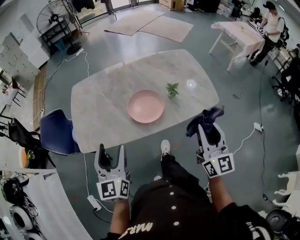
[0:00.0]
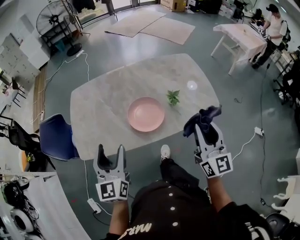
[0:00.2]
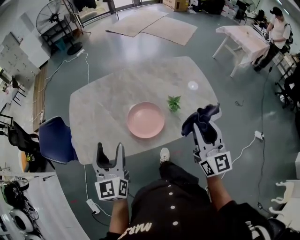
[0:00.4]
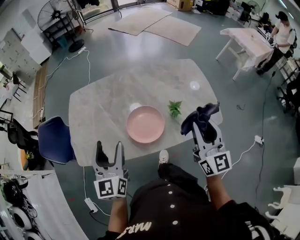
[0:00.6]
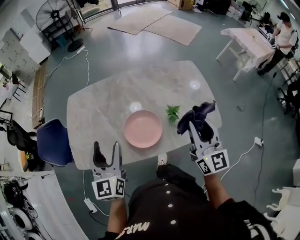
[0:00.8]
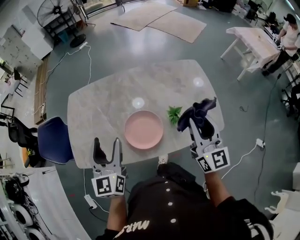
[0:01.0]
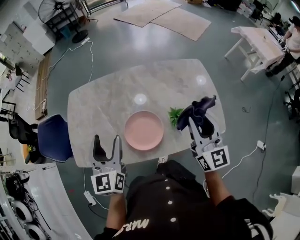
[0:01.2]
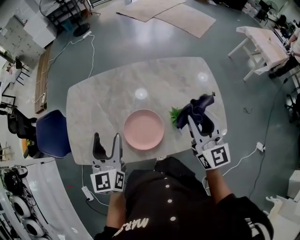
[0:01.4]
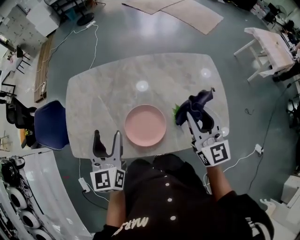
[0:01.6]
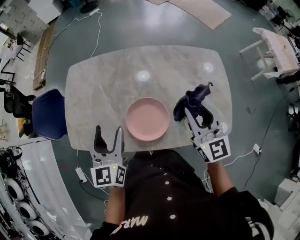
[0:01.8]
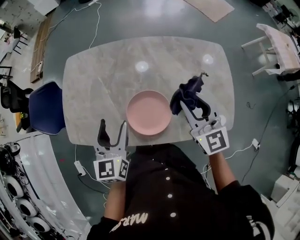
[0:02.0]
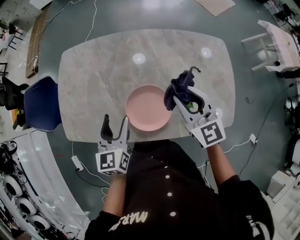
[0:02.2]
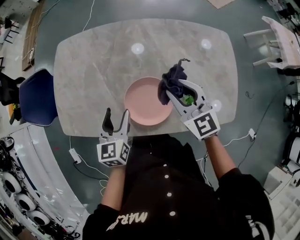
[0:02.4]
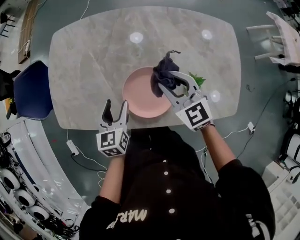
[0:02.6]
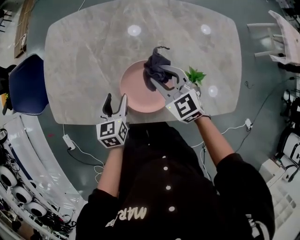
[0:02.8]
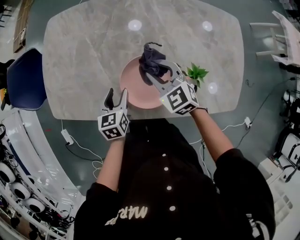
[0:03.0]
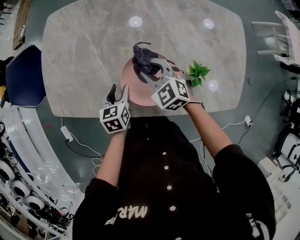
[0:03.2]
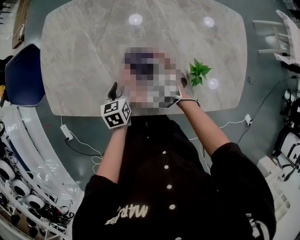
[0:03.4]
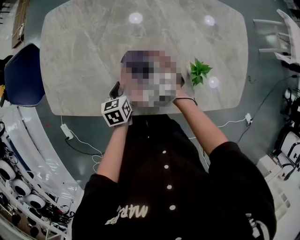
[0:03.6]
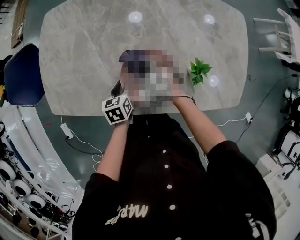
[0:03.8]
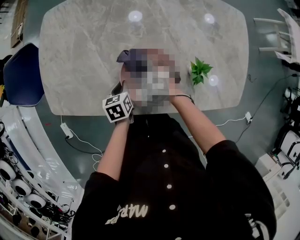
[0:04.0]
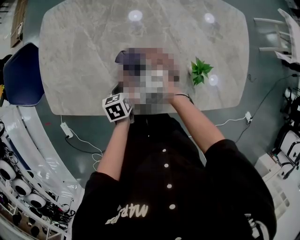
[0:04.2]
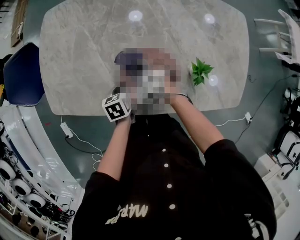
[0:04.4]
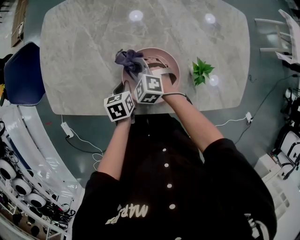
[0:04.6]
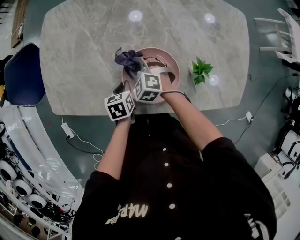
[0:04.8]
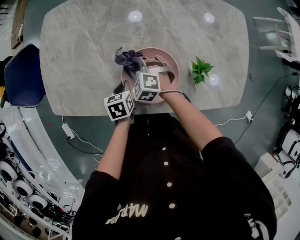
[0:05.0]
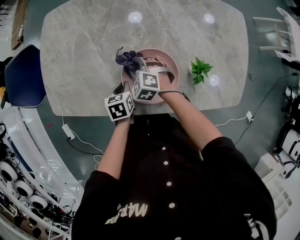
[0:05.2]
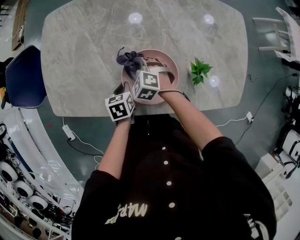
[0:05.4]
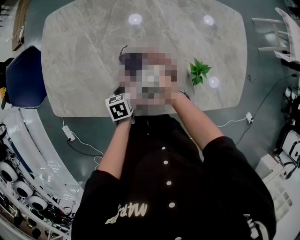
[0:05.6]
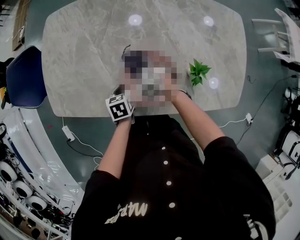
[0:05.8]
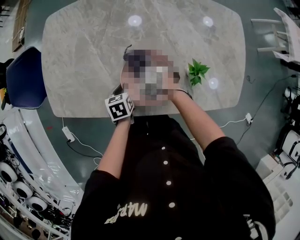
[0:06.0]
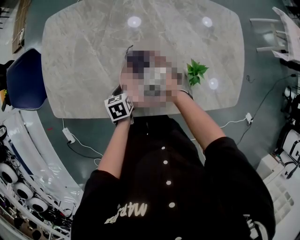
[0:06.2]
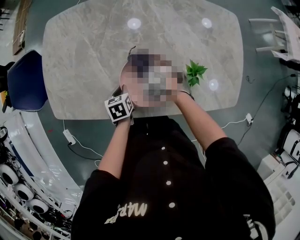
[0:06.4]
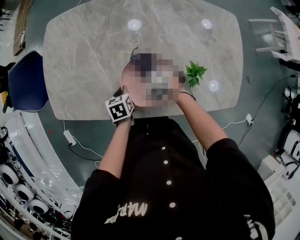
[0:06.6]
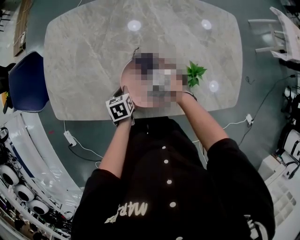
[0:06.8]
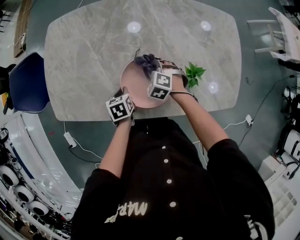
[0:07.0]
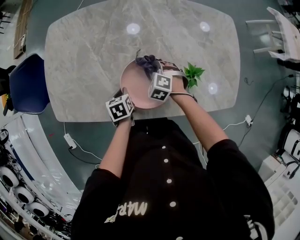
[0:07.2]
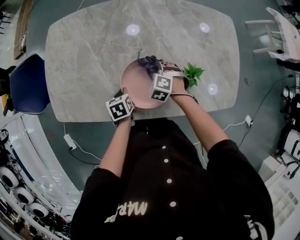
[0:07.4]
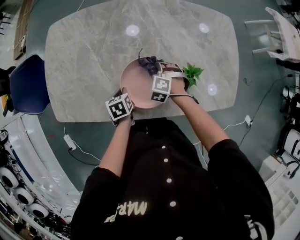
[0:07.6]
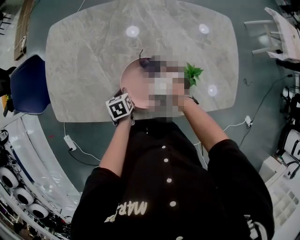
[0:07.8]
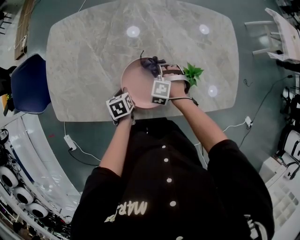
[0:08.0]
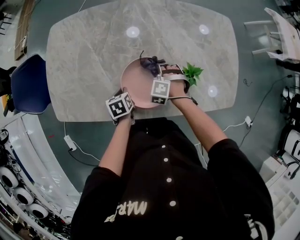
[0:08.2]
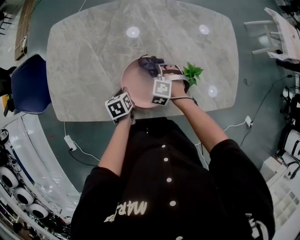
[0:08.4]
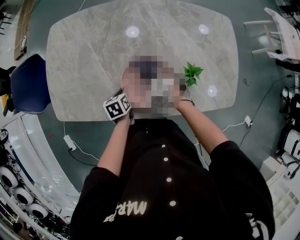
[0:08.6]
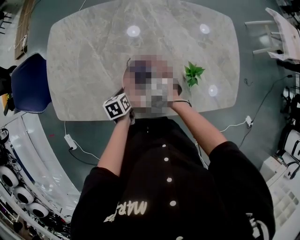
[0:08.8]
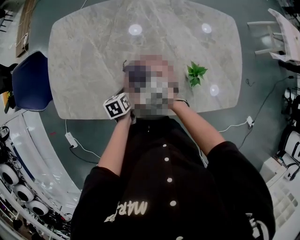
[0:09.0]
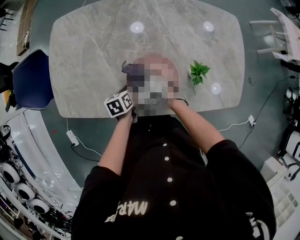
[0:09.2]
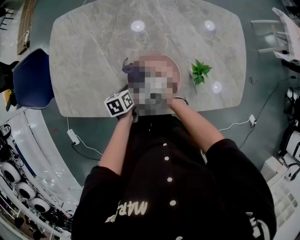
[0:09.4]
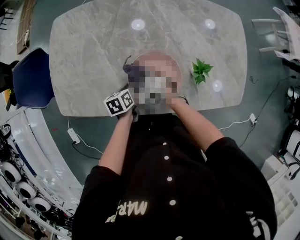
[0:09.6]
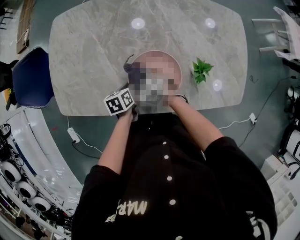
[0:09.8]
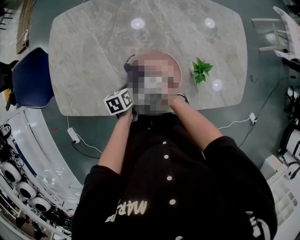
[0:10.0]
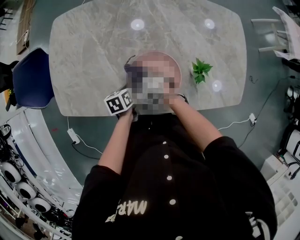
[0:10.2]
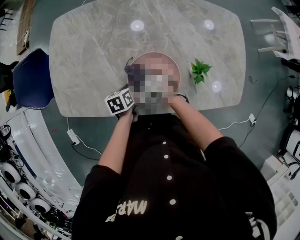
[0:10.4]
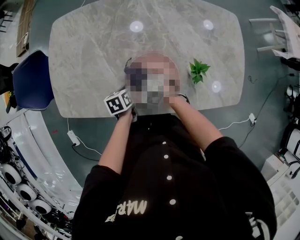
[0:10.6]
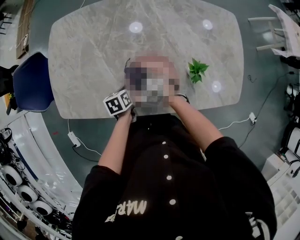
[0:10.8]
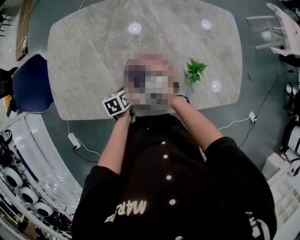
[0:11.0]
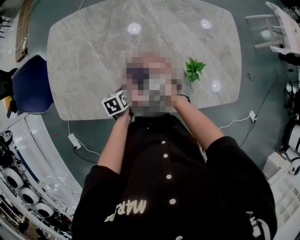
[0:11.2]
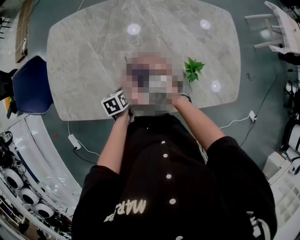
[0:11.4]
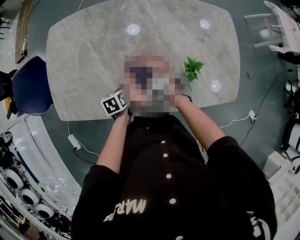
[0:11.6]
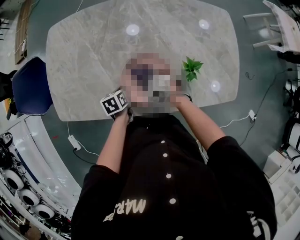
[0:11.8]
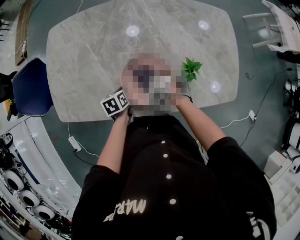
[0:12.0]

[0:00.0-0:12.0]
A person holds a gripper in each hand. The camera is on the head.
0:00.0 to 0:01.6: Both grippers move forward, some 30 cm. The right gripper swivels about 20 degrees.
0:01.6 to 0:03.0: The left gripper moves downward, approximately 30 cm, and points its fingers approximately 30 degrees further downward. The right gripper travels downward, to the left and forward by approximately 35 cm, and tilts its fingers about 40 degrees downward.
0:03.0 to 0:04.4: The left gripper travels downward by about 10 cm, and closes. The right gripper shifts some 15 cm downward and to the left, and turns by approximately 20 degrees.
0:04.4 to 0:06.0: The grippers stay close to where they were, moving slightly.
0:06.0 to 0:07.6: The right gripper moves to the right, about 10 cm, and turns by about 20 degrees.
0:07.6 to 0:09.0: The right gripper goes about 10 cm to the left, and swivels roughly 30 degrees.
0:09.0 to 0:10.4: The grippers stay close to where they were, moving slightly.
0:10.4 to 0:12.0: The right gripper travels to the right by approximately 5 cm.

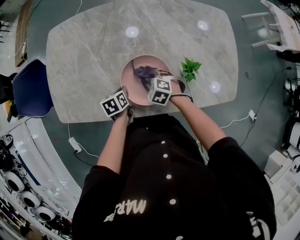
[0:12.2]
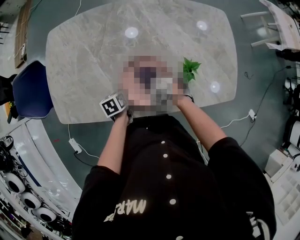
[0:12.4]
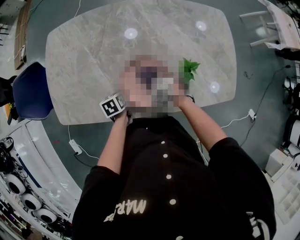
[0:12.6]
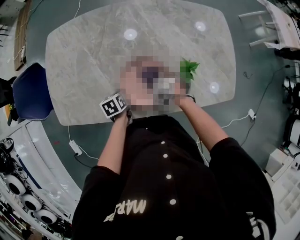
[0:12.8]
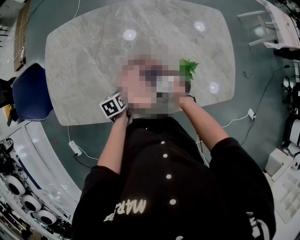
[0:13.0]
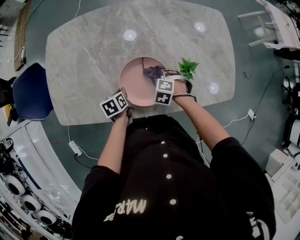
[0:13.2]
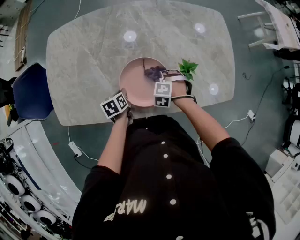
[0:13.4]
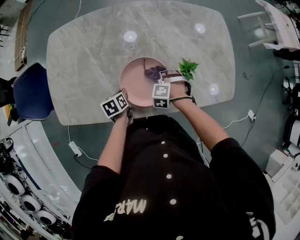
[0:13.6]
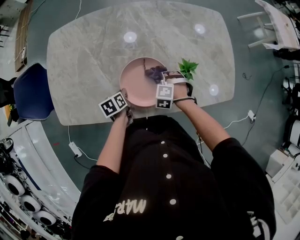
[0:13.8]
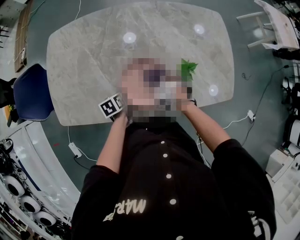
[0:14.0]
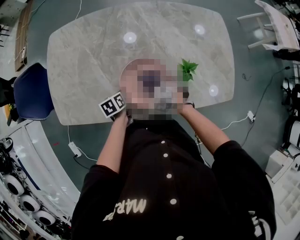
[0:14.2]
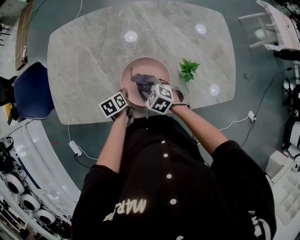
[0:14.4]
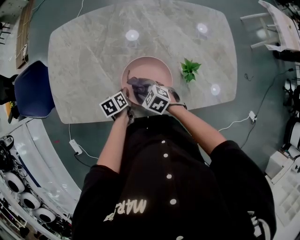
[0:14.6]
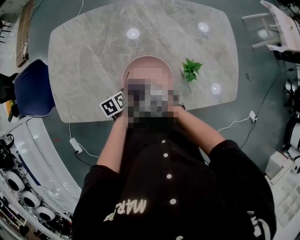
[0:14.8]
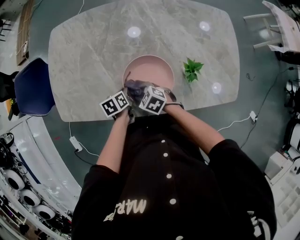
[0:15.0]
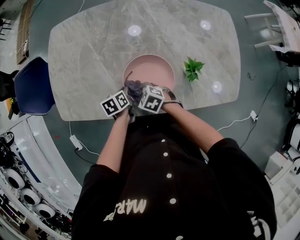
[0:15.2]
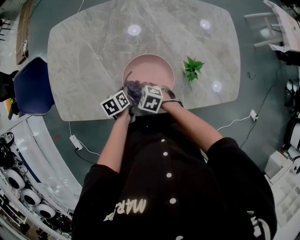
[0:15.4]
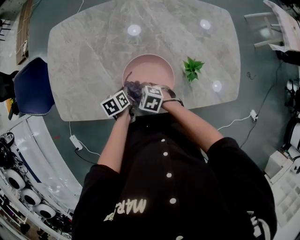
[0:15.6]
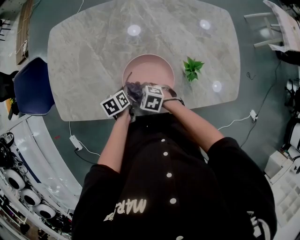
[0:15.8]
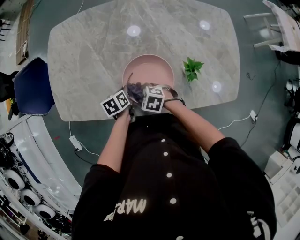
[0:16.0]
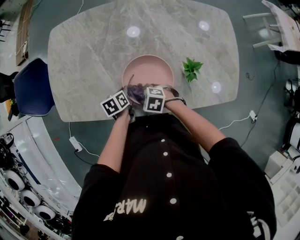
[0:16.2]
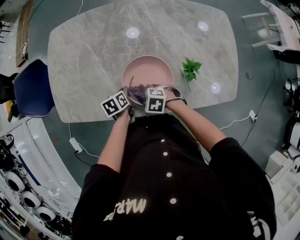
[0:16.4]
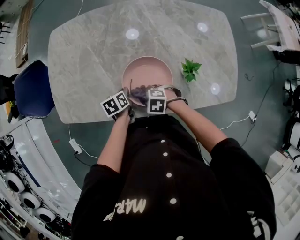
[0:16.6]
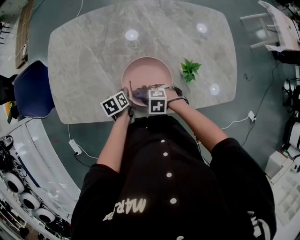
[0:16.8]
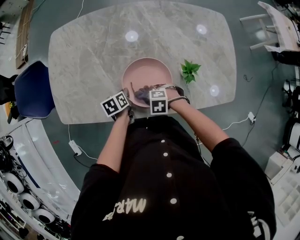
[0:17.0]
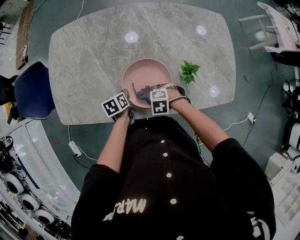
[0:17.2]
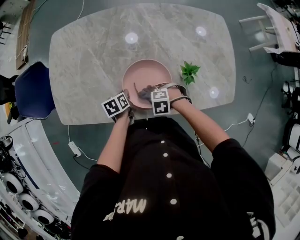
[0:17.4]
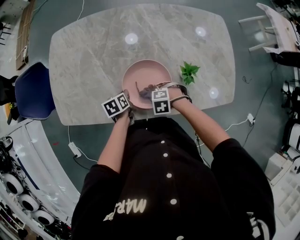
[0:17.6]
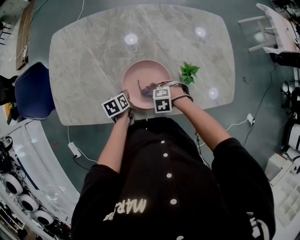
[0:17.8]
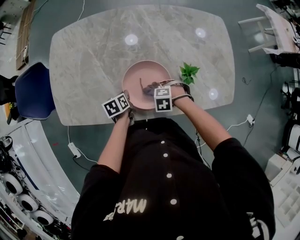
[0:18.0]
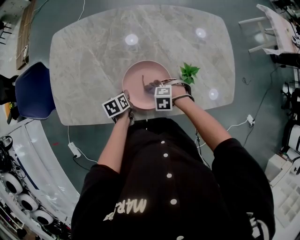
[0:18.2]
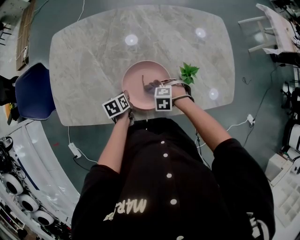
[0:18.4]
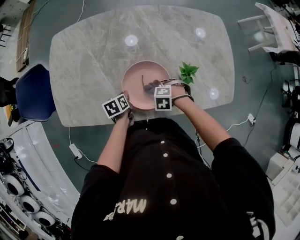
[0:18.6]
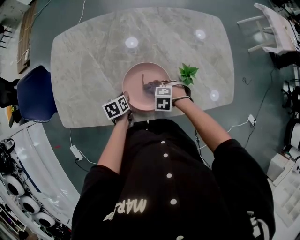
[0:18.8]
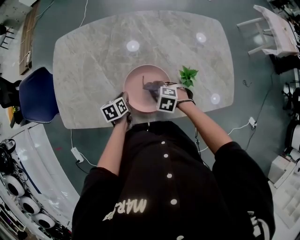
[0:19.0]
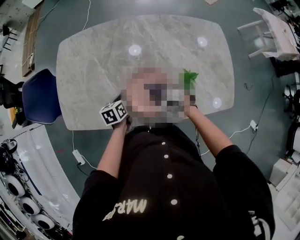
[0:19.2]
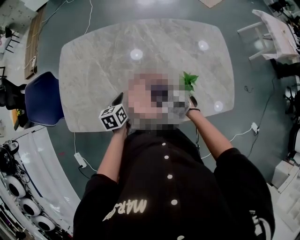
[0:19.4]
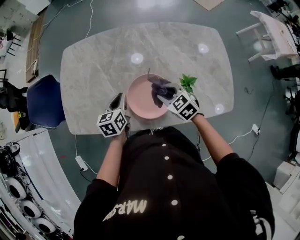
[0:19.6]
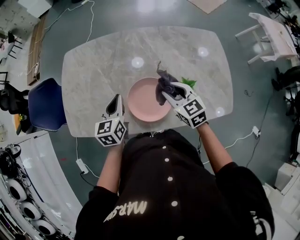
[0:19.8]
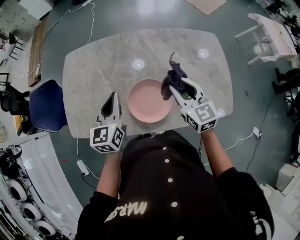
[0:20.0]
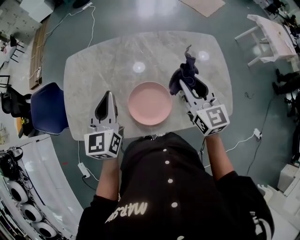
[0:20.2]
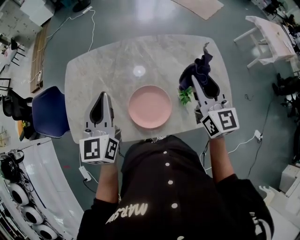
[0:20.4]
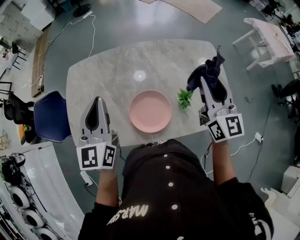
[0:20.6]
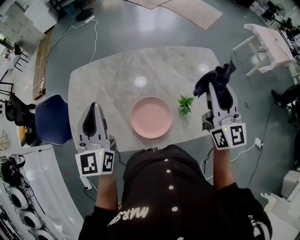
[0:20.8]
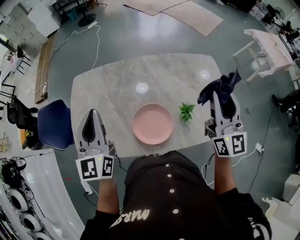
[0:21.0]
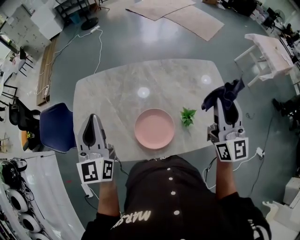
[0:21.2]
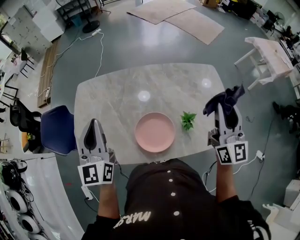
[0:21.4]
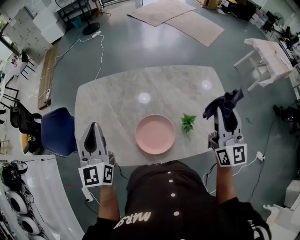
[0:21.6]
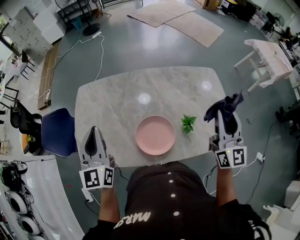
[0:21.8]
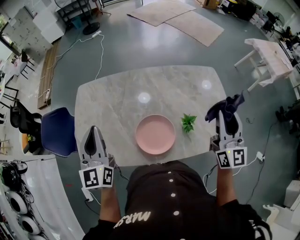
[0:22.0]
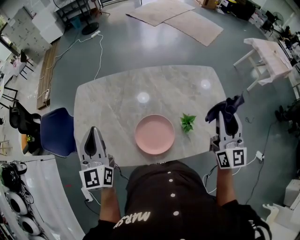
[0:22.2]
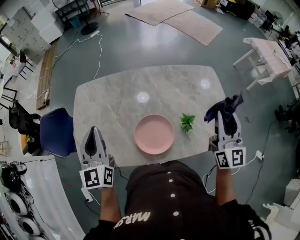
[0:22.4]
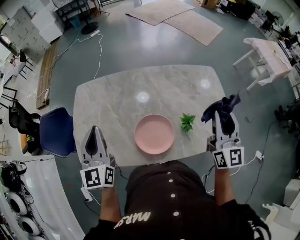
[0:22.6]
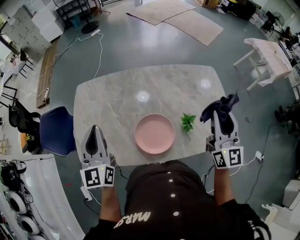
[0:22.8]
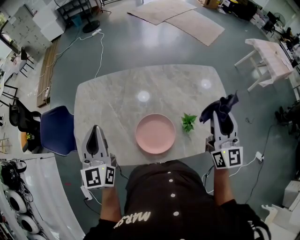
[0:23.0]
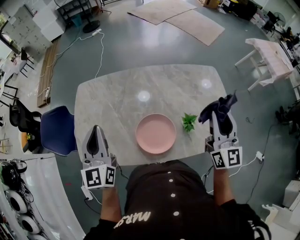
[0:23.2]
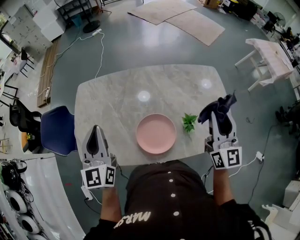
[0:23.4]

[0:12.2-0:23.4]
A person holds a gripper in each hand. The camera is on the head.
0:12.2 to 0:13.8: The right gripper moves about 5 cm, and turns by some 30 degrees.
0:13.8 to 0:15.4: The right gripper shifts by about 15 cm, and turns by approximately 40 degrees.
0:15.4 to 0:17.0: The right gripper ends up about 5 cm from where it was, and rotates roughly 20 degrees.
0:17.0 to 0:18.6: The right gripper moves some 5 cm.
0:18.6 to 0:20.2: Both grippers move upward, approximately 35 cm. The right gripper points its fingers some 80 degrees further upward, while the left gripper tips its fingers upward by approximately 50 degrees.
0:20.2 to 0:21.8: The left gripper heads upward and to the left, covering roughly 10 cm; the right gripper is displaced upward and to the right by about 15 cm, and turns by roughly 30 degrees.
0:21.8 to 0:23.4: There are only small adjustments of the grippers.
